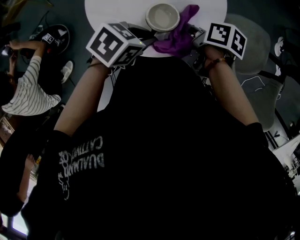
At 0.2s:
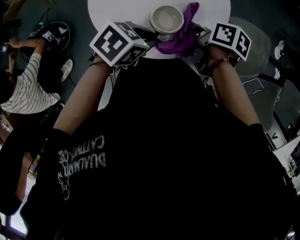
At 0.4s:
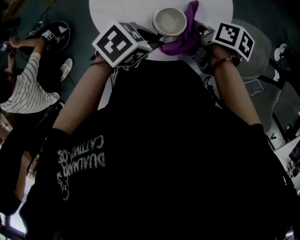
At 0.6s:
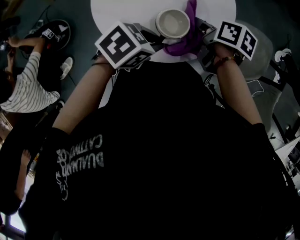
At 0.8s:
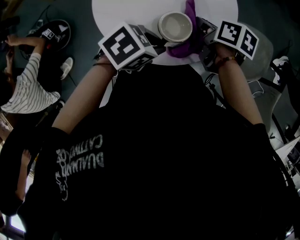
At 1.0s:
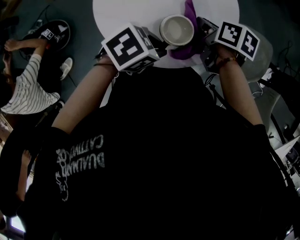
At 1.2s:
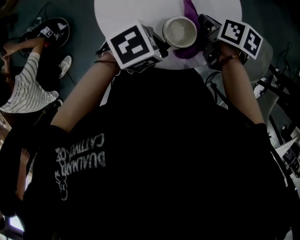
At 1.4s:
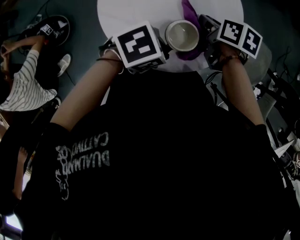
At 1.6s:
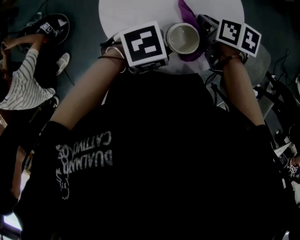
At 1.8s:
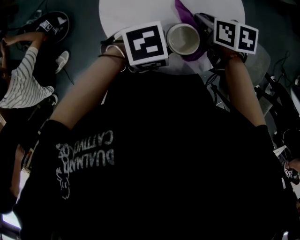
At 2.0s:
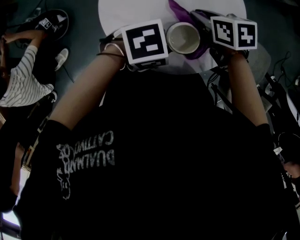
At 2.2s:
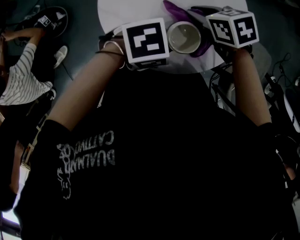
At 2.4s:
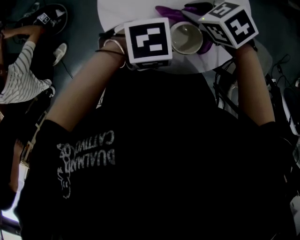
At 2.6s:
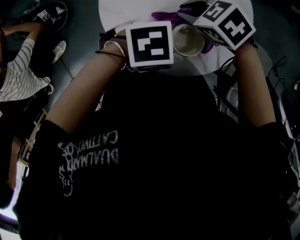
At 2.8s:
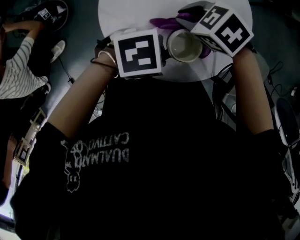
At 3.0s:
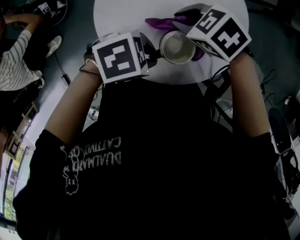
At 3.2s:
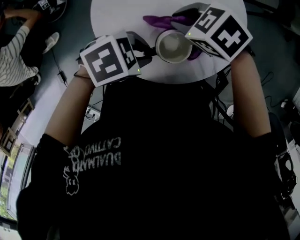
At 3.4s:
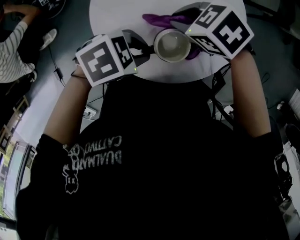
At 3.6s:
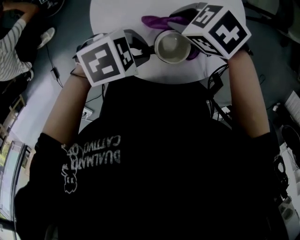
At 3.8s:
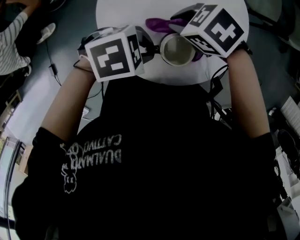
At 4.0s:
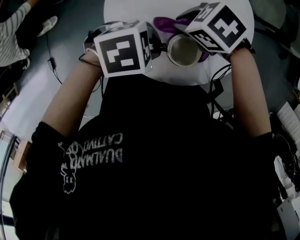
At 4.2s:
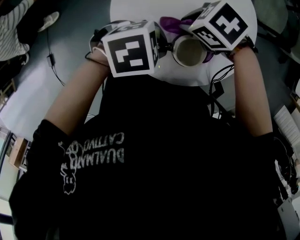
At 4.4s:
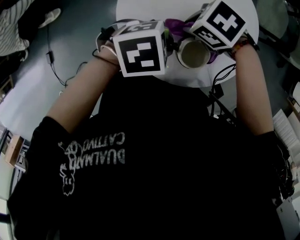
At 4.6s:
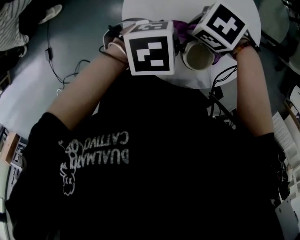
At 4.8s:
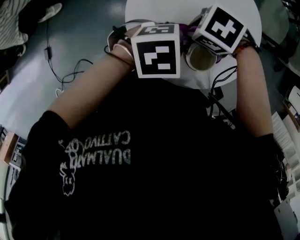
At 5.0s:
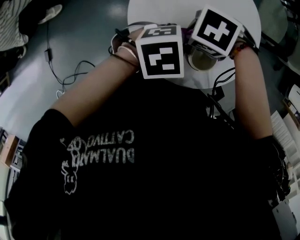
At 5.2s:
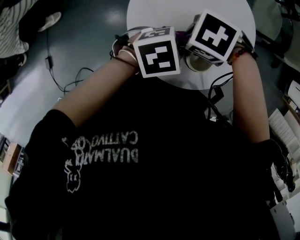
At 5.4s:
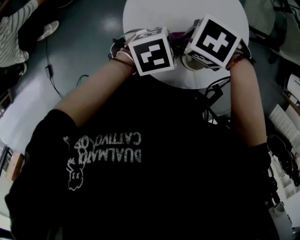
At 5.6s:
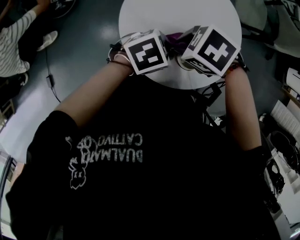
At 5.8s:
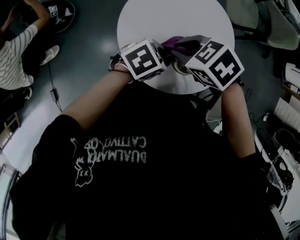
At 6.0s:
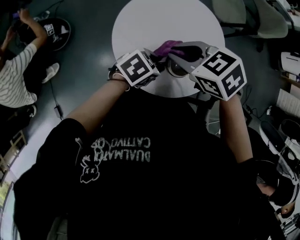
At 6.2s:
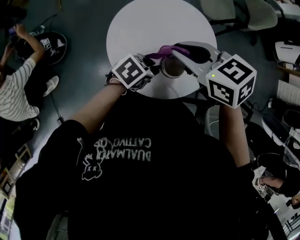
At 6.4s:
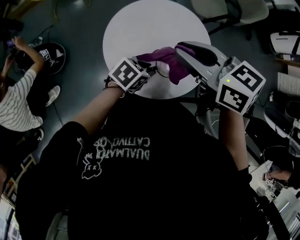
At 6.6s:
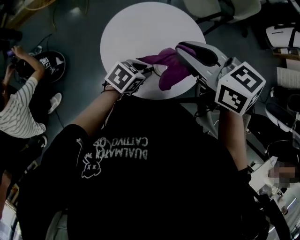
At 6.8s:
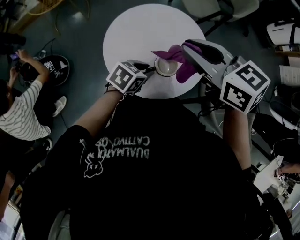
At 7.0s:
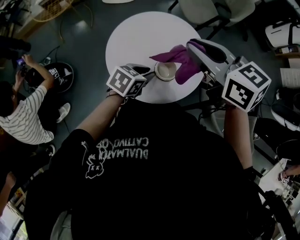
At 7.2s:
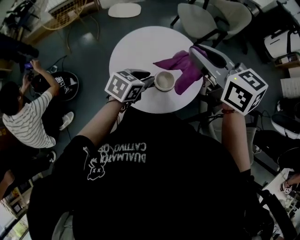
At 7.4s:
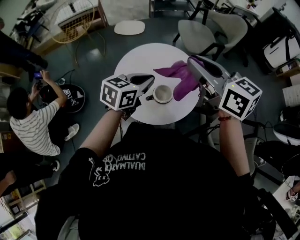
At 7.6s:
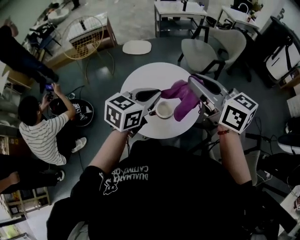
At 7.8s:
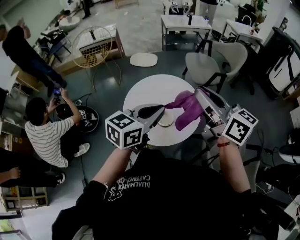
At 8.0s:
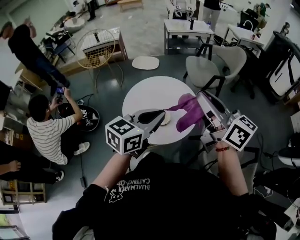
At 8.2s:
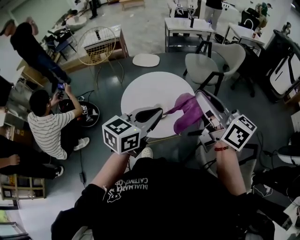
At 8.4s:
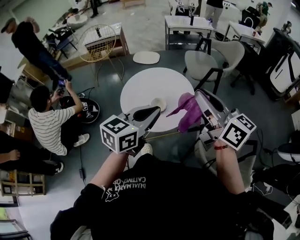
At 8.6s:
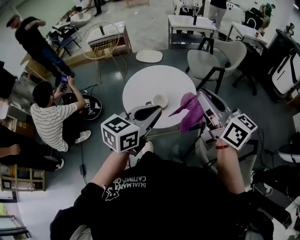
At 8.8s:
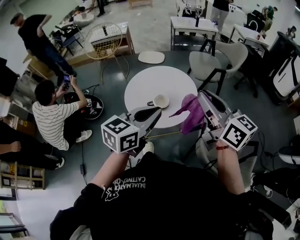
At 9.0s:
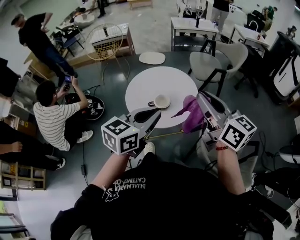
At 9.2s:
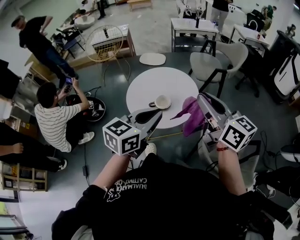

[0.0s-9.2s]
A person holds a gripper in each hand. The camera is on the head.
0.0s to 1.6s: The left gripper changes its angle by about 20 degrees; the right gripper shifts by about 10 cm, and turns by approximately 20 degrees.
1.6s to 3.0s: The right gripper changes place by roughly 10 cm, and rotates around the line of its fingers by approximately 70 degrees, counterclockwise from behind.
3.0s to 4.6s: The right gripper ends up about 5 cm from where it was, and swivels roughly 30 degrees. Meanwhile the left gripper changes its angle by some 20 degrees.
4.6s to 6.2s: The right gripper travels upward by approximately 20 cm, and turns by roughly 70 degrees.
6.2s to 7.6s: Both grippers travel together upward, about 20 cm. The left gripper changes its angle by about 40 degrees, and closes its fingers. Meanwhile the right gripper tips its fingers upward by roughly 40 degrees.
7.6s to 9.2s: The left gripper shifts roughly 20 cm backward, while the right gripper travels backward and to the right by about 20 cm.

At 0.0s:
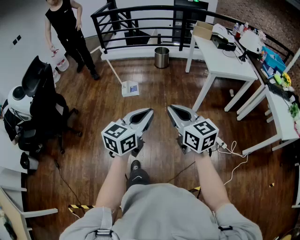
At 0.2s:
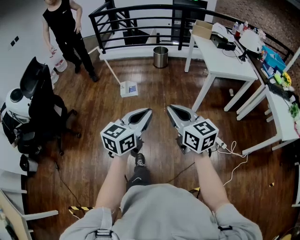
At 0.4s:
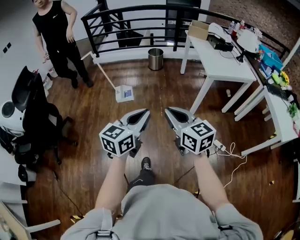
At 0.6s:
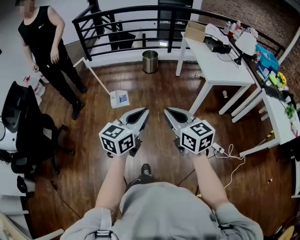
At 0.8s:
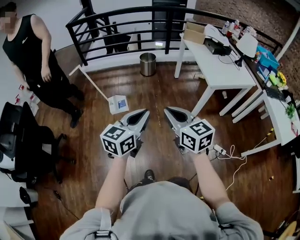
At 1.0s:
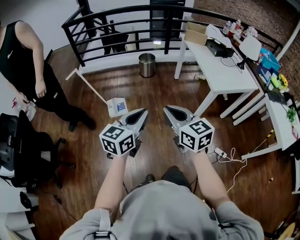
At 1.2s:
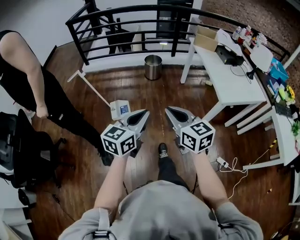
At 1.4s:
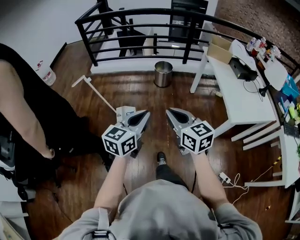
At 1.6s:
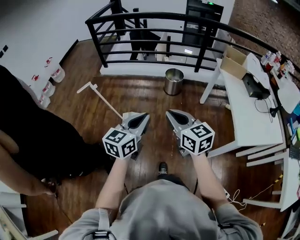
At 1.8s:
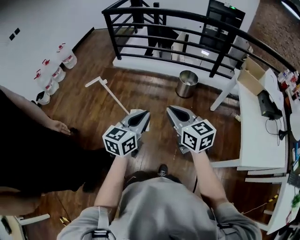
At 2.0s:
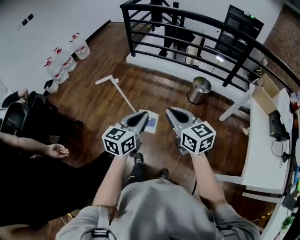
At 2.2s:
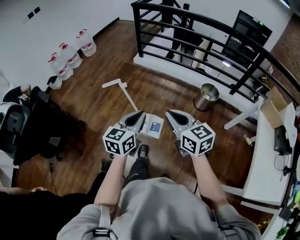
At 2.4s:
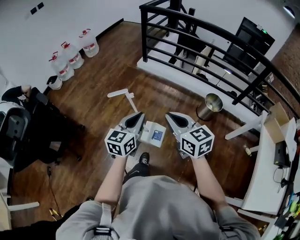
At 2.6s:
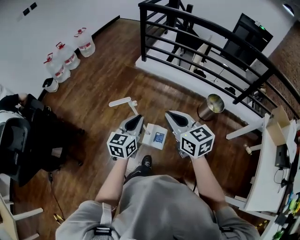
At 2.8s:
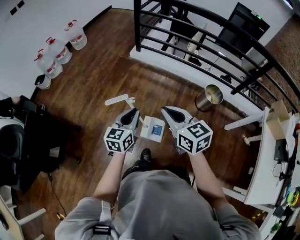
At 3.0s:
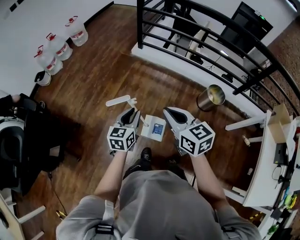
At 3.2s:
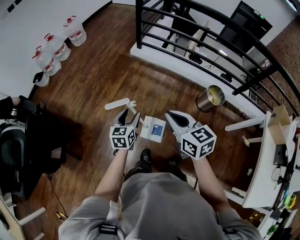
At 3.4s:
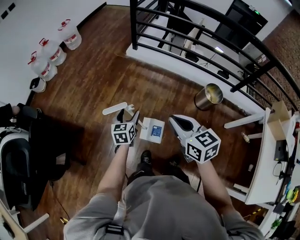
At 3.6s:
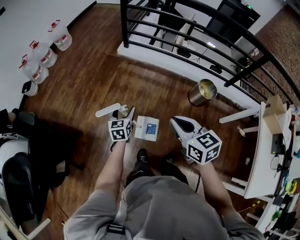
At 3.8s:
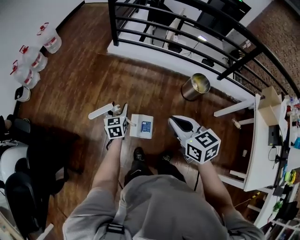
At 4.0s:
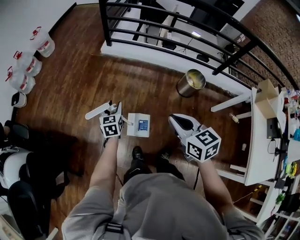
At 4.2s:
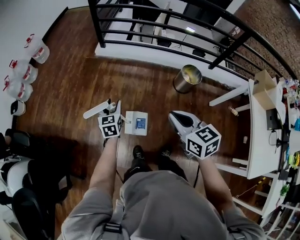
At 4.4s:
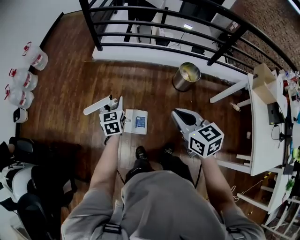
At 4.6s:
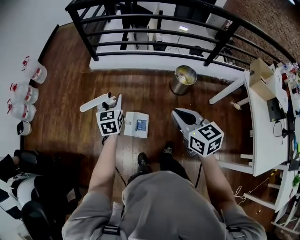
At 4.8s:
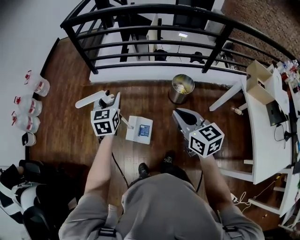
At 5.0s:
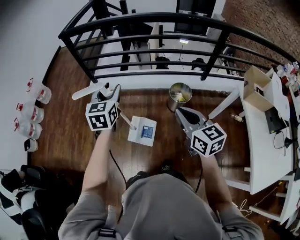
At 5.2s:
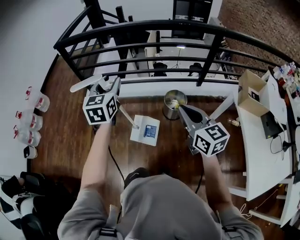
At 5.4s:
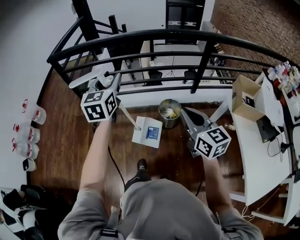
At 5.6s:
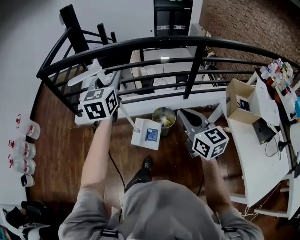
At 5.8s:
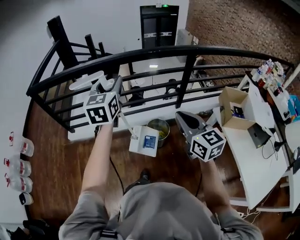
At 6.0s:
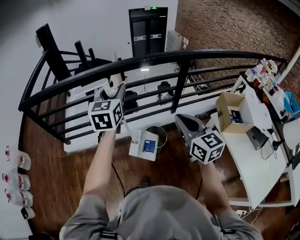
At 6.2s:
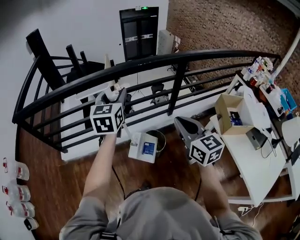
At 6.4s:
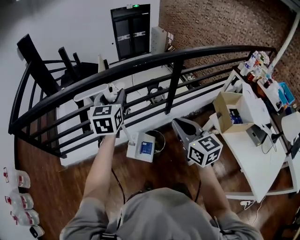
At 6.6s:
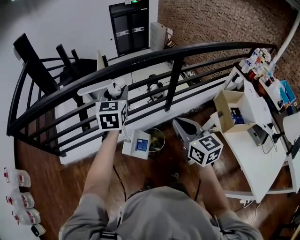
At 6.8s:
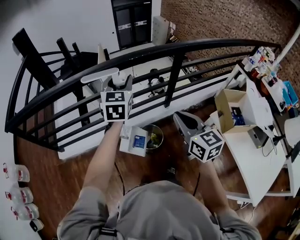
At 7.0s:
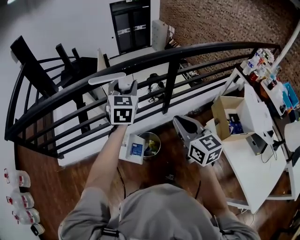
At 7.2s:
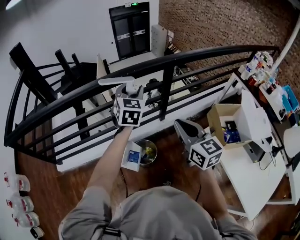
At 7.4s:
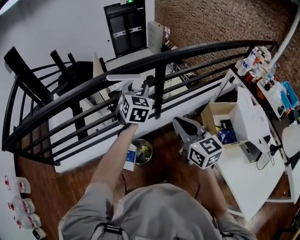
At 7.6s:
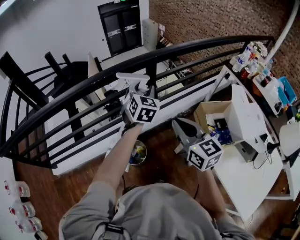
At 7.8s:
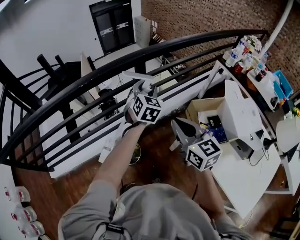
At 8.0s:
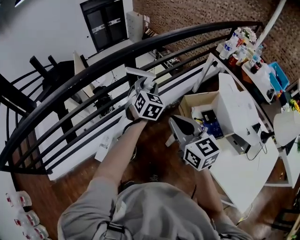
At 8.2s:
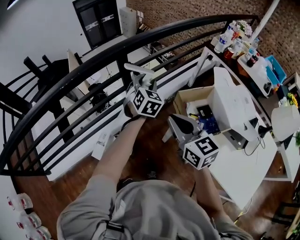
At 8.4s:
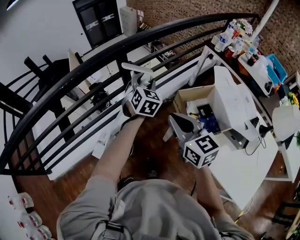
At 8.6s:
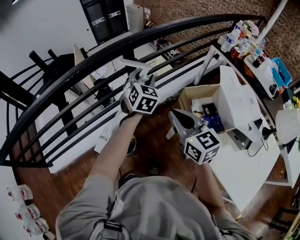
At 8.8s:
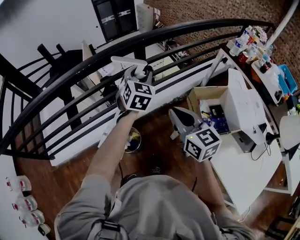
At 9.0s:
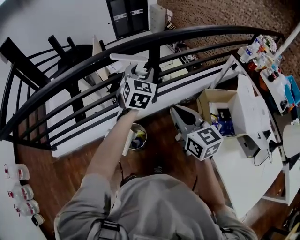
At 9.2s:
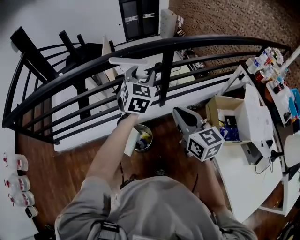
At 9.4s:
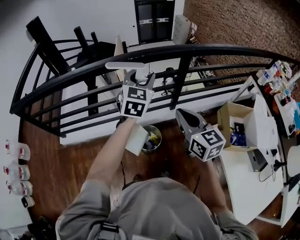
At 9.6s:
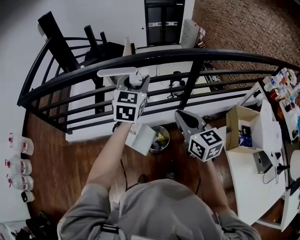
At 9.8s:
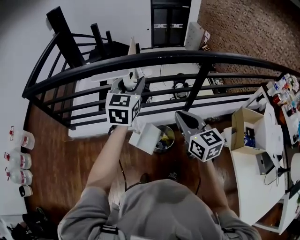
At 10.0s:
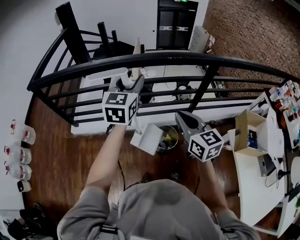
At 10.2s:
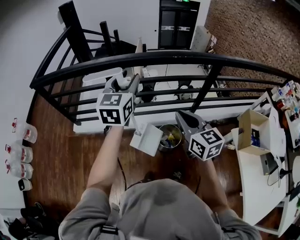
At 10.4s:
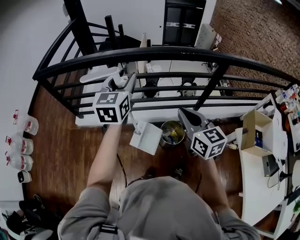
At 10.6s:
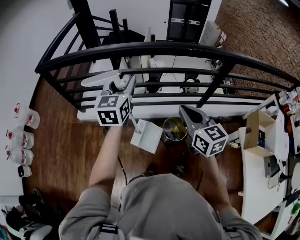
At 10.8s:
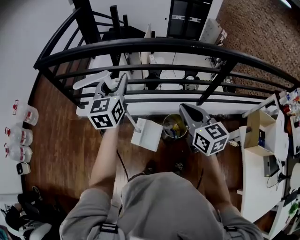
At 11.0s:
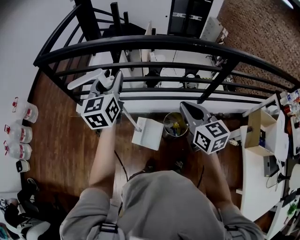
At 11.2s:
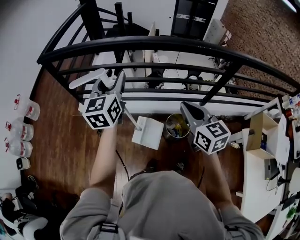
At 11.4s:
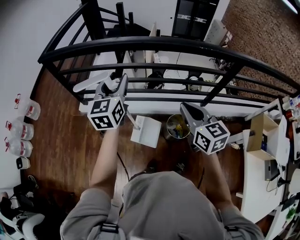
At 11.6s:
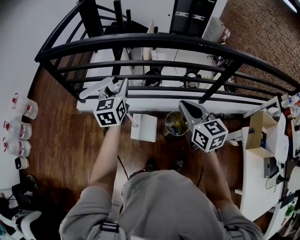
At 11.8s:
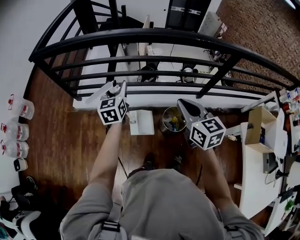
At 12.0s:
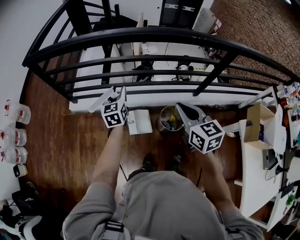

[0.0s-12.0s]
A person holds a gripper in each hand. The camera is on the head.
0.0s to 1.6s: The two grippers travel together, forward, some 60 cm.
1.6s to 3.0s: The two grippers travel together, forward and to the left, approximately 50 cm. The left gripper shifts roughly 15 cm downward, and rotates some 30 degrees, while the right gripper rotates about 20 degrees.
3.0s to 4.4s: The right gripper travels to the right by roughly 15 cm, and changes its angle by about 20 degrees. Meanwhile the left gripper moves forward and to the right, about 15 cm, and opens up.
4.4s to 6.0s: The two grippers travel together, some 60 cm. The left gripper rotates approximately 40 degrees. The right gripper rotates approximately 30 degrees.
6.0s to 7.6s: The left gripper is displaced to the right and forward by roughly 50 cm, and rotates roughly 30 degrees. The right gripper moves to the right and forward, approximately 25 cm.
7.6s to 9.0s: The right gripper travels to the right and back again, approximately 10 cm each way, while the left gripper travels to the right and back again, some 15 cm each way.
9.0s to 10.4s: The right gripper goes approximately 35 cm to the left. Meanwhile the left gripper goes roughly 50 cm to the left, and changes its angle by approximately 30 degrees.
10.4s to 12.0s: The left gripper goes about 25 cm downward and to the left. Meanwhile the right gripper is displaced downward by some 5 cm.

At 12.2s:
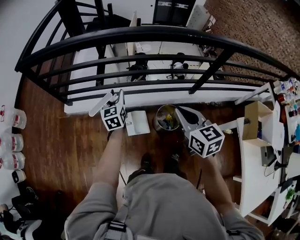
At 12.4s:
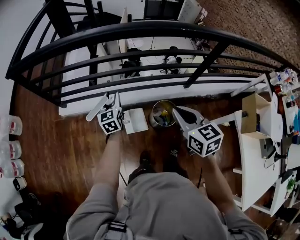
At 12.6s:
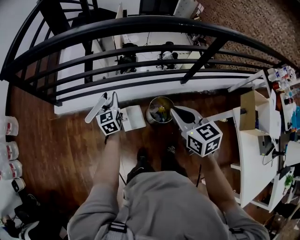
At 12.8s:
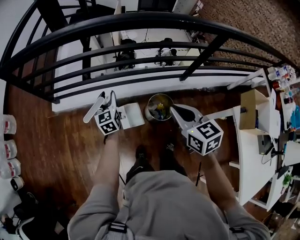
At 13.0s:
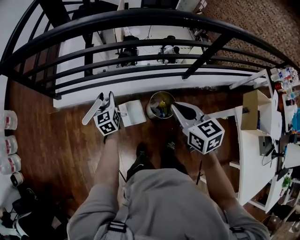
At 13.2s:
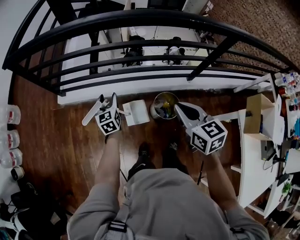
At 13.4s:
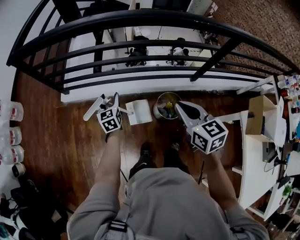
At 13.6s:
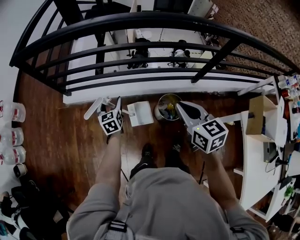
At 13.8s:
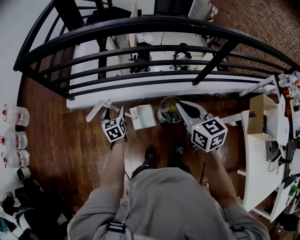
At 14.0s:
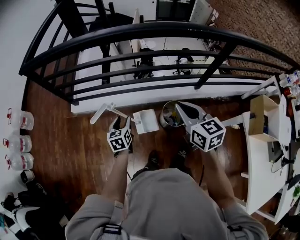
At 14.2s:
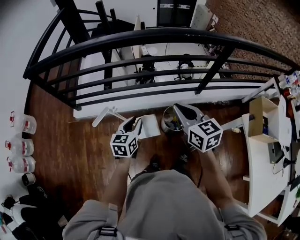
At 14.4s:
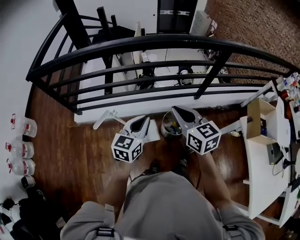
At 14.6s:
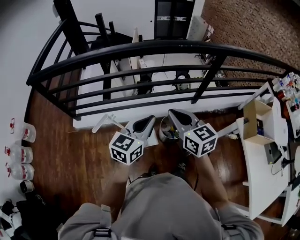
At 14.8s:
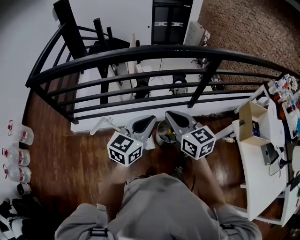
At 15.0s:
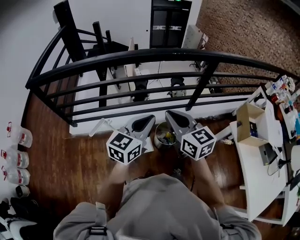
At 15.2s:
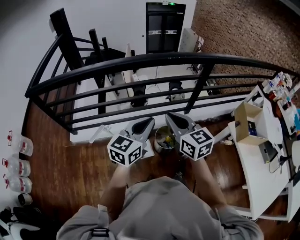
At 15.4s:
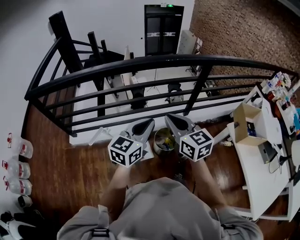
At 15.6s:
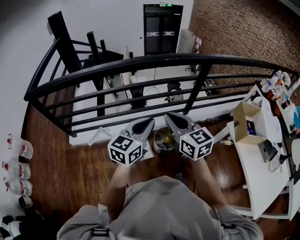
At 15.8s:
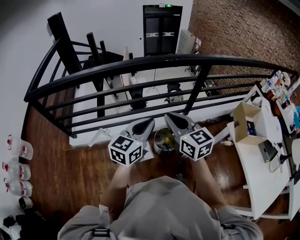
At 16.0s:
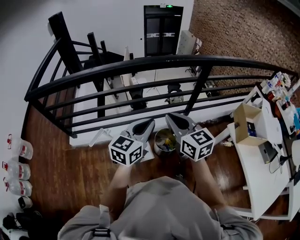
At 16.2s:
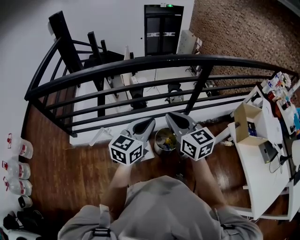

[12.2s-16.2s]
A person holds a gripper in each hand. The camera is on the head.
12.2s to 13.6s: The left gripper travels downward by some 10 cm, and opens.
13.6s to 14.8s: The left gripper goes about 40 cm upward, to the right and backward, swivels about 50 degrees, and closes up. Meanwhile the right gripper is displaced upward by roughly 10 cm.
14.8s to 16.2s: The grippers make only small movements.
